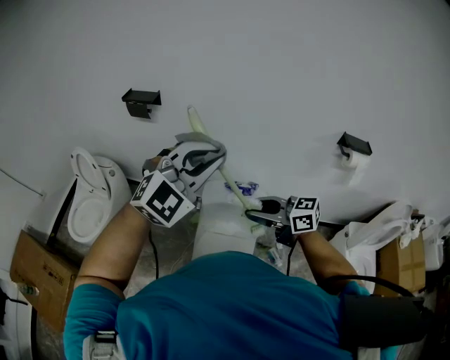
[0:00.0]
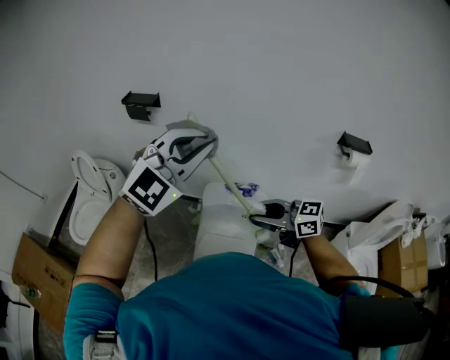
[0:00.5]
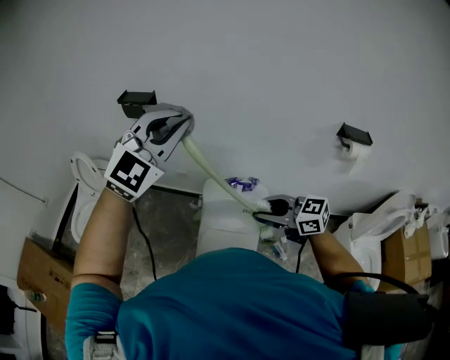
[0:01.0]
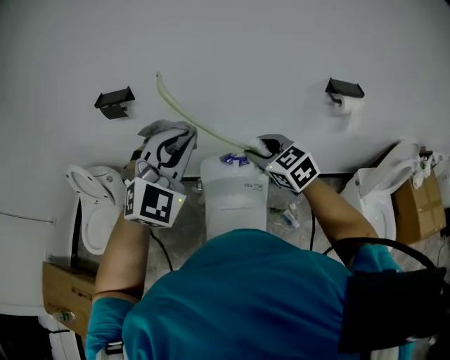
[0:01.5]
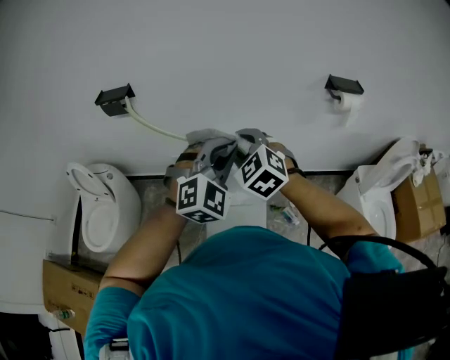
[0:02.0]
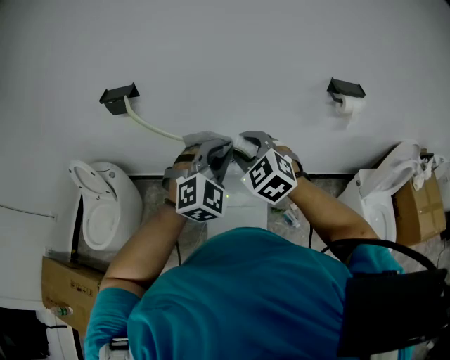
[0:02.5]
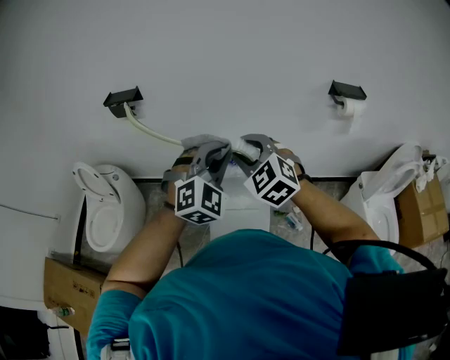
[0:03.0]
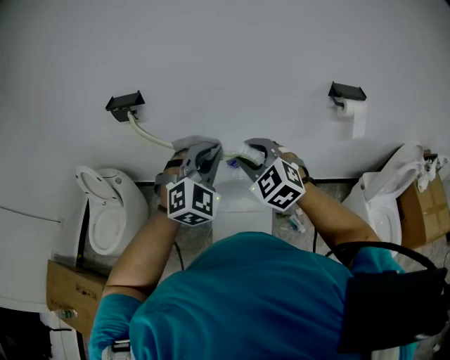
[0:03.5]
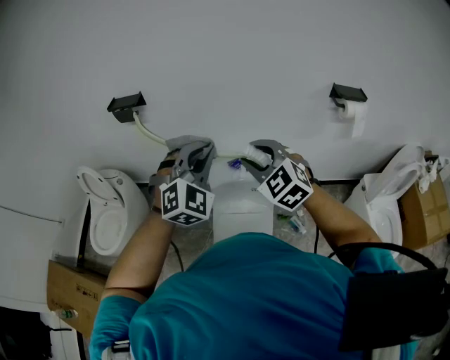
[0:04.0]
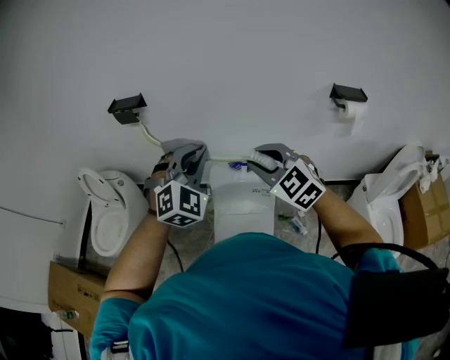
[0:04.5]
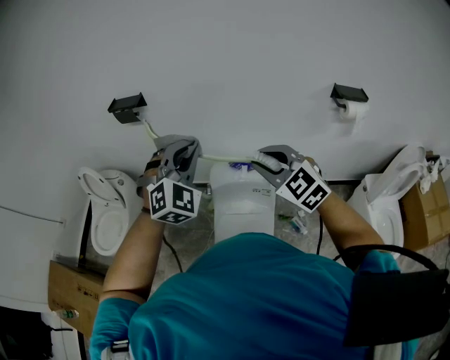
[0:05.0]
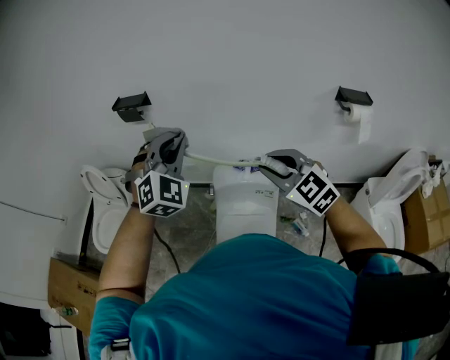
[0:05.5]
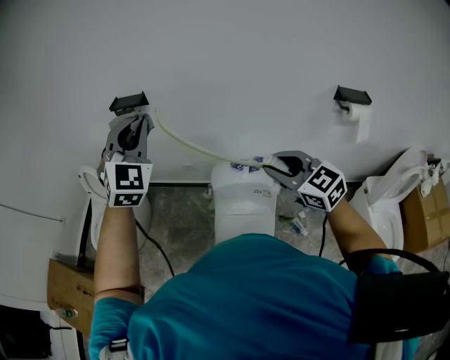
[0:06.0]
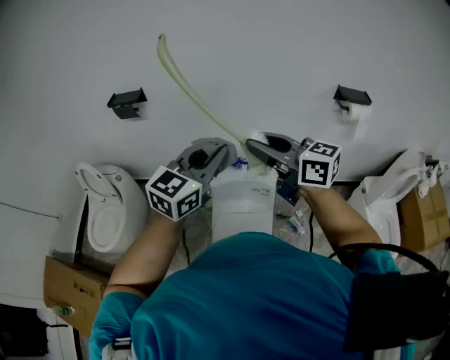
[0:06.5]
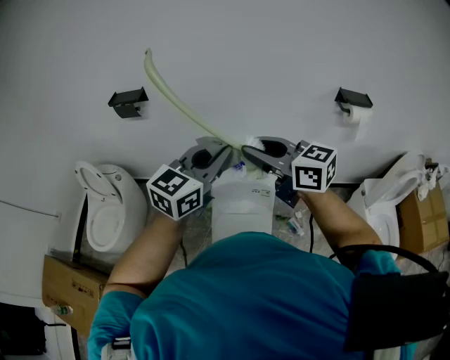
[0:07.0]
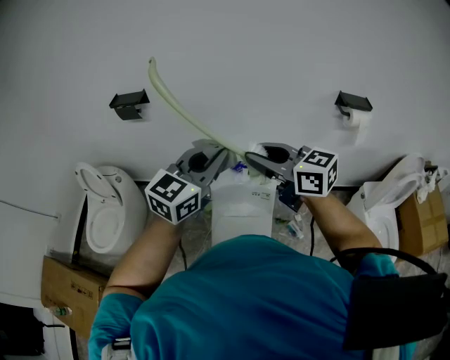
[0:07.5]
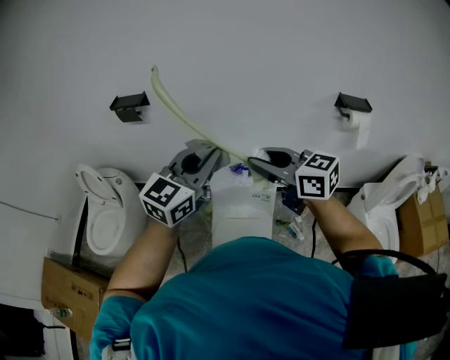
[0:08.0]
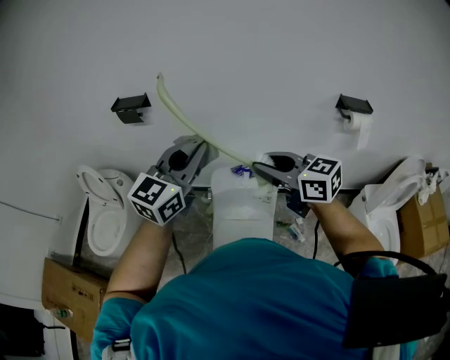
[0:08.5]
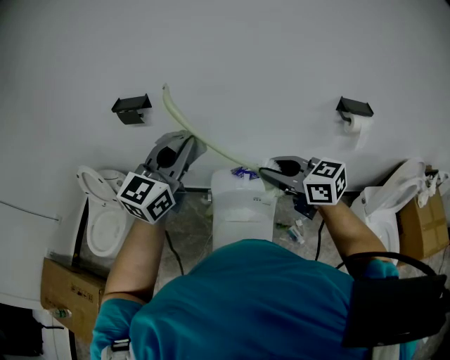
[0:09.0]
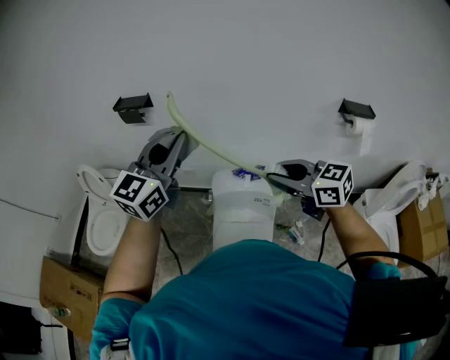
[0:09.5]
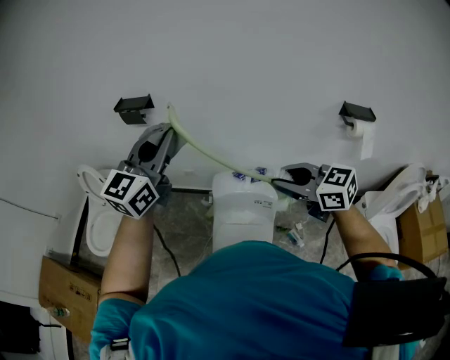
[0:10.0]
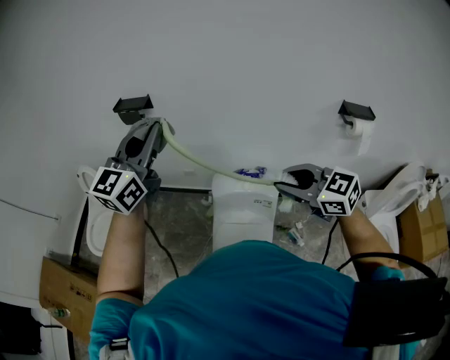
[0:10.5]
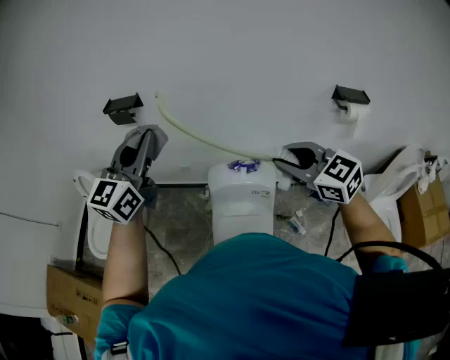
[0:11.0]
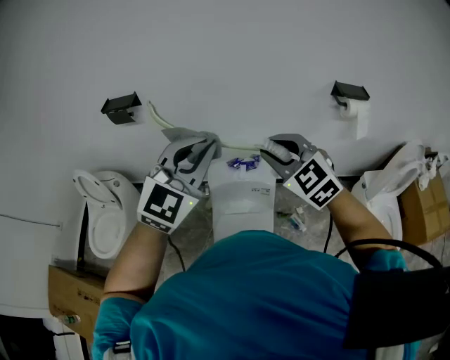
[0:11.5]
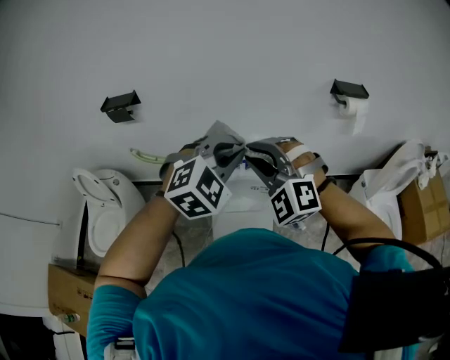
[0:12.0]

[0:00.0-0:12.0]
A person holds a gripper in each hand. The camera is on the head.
0:00.0 to 0:02.0: The right gripper shifts some 10 cm forward, and changes its angle by some 60 degrees. Meanwhile the left gripper moves downward and to the right, about 15 cm.
0:02.0 to 0:04.0: The left gripper travels to the left by approximately 5 cm.
0:04.0 to 0:06.0: The left gripper goes some 20 cm to the left, upward and forward, and changes its angle by roughly 20 degrees. The right gripper changes place by roughly 5 cm, and swivels some 30 degrees.
0:06.0 to 0:08.0: The right gripper ends up some 5 cm from where it was, and changes its angle by approximately 20 degrees. The left gripper shifts roughly 15 cm to the right, downward and backward, and swivels roughly 60 degrees.
0:08.0 to 0:10.0: The left gripper heads to the left and upward, covering approximately 15 cm. Meanwhile the right gripper moves roughly 5 cm.
0:10.0 to 0:12.0: The right gripper ends up roughly 5 cm from where it was, and rolls counterclockwise, seen from behind, by about 60 degrees, while the left gripper travels to the right and downward by about 20 cm, and tips its fingers downward by some 40 degrees.

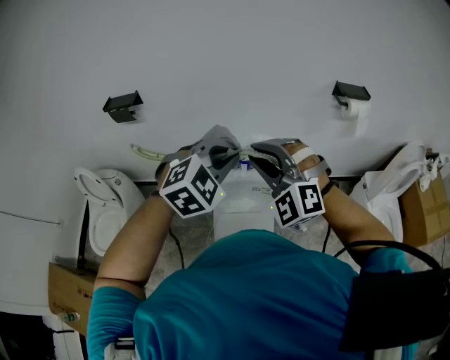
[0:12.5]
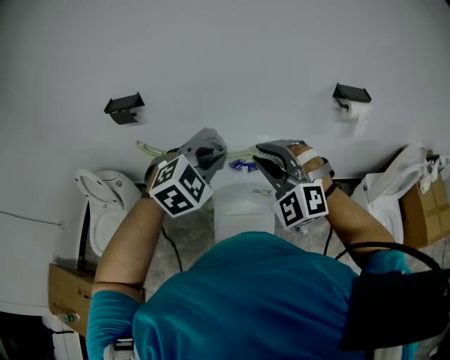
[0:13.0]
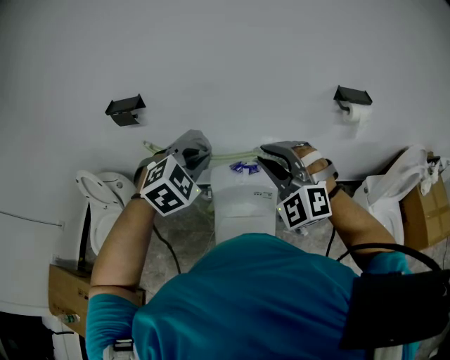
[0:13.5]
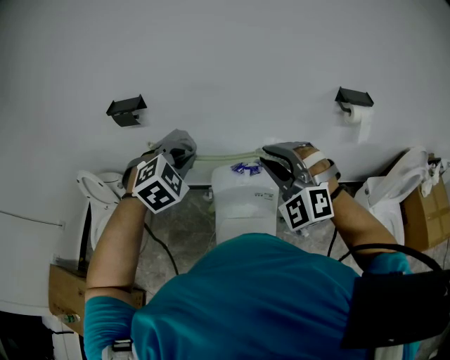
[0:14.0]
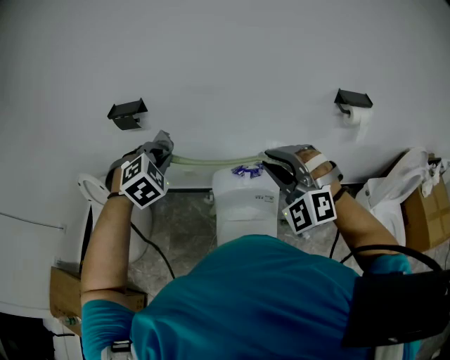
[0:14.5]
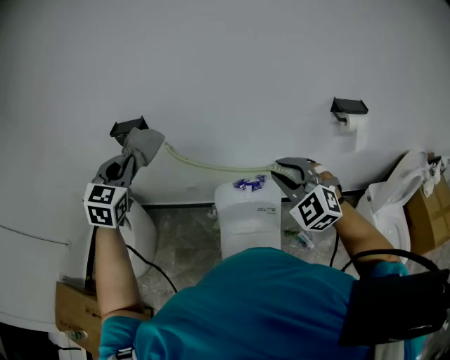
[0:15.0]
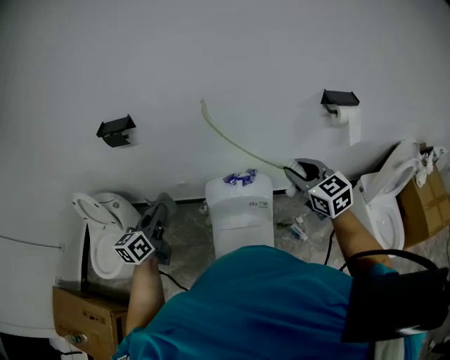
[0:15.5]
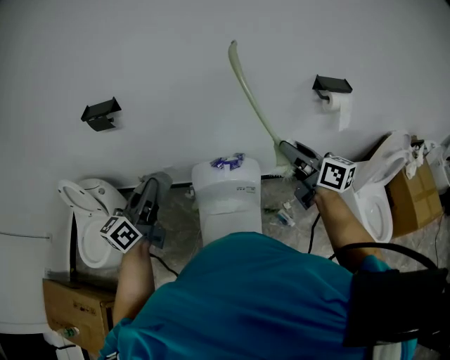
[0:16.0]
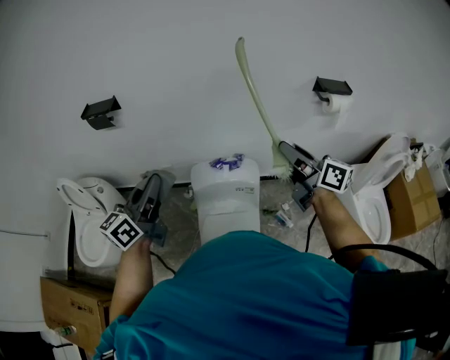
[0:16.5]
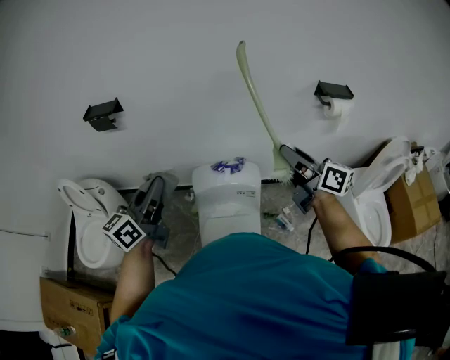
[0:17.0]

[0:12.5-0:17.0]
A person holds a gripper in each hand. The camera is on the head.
0:12.5 to 0:14.5: The left gripper travels to the left by roughly 20 cm, and changes its angle by about 30 degrees.
0:14.5 to 0:17.0: The right gripper moves to the right, some 15 cm, and rotates around the line of its fingers by some 110 degrees, clockwise from behind. The left gripper moves up and down over roughly 20 cm, changing direction 2 times, and points its fingers roughly 50 degrees further upward.

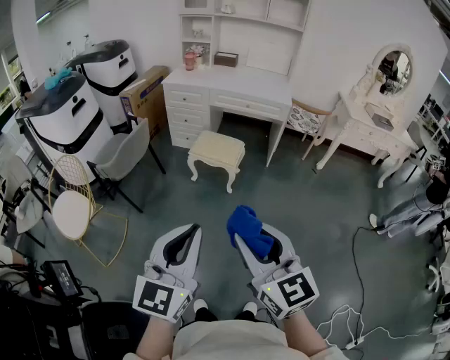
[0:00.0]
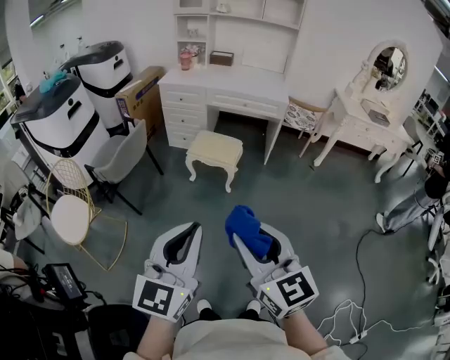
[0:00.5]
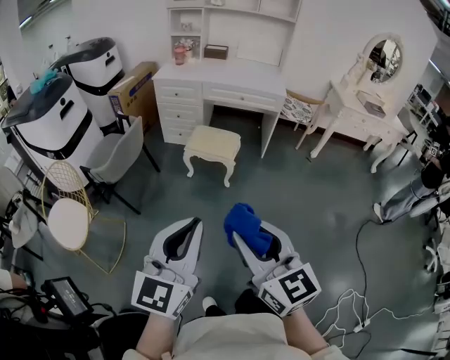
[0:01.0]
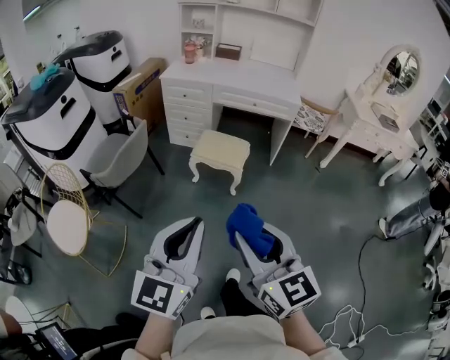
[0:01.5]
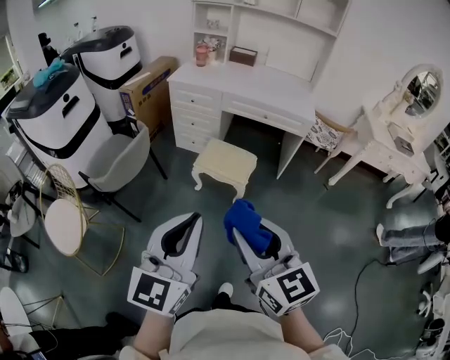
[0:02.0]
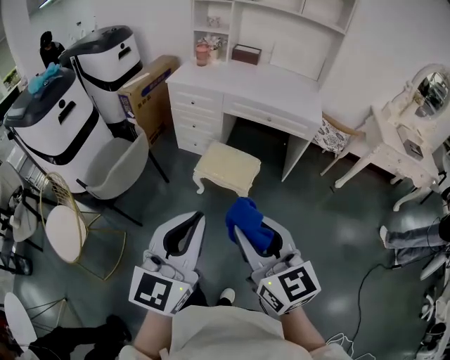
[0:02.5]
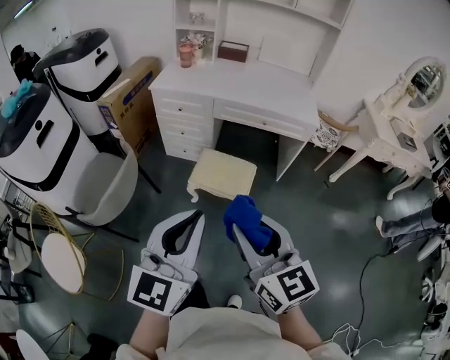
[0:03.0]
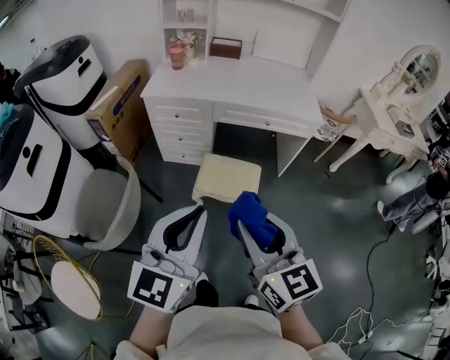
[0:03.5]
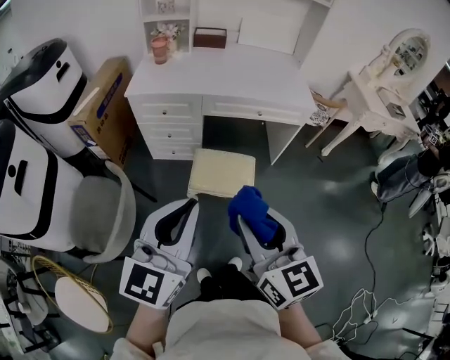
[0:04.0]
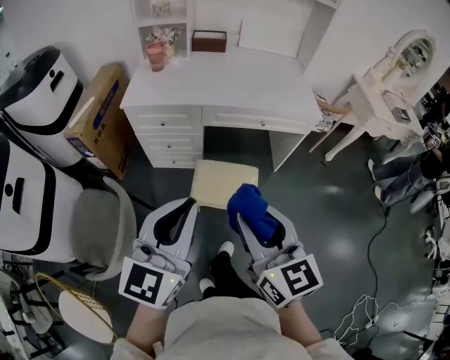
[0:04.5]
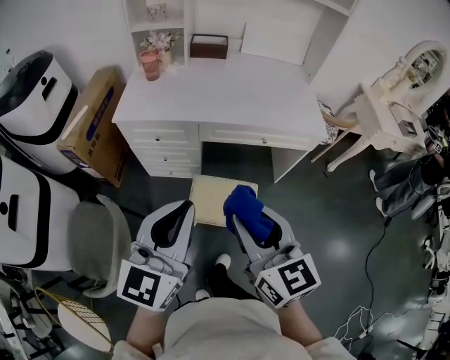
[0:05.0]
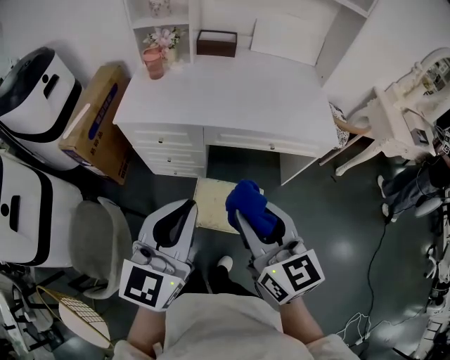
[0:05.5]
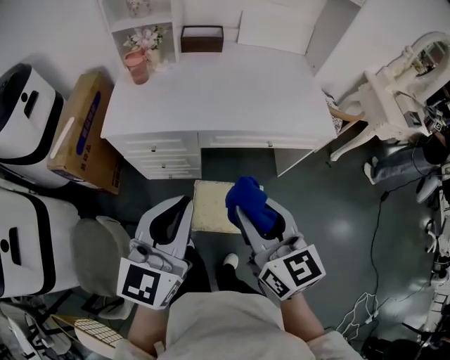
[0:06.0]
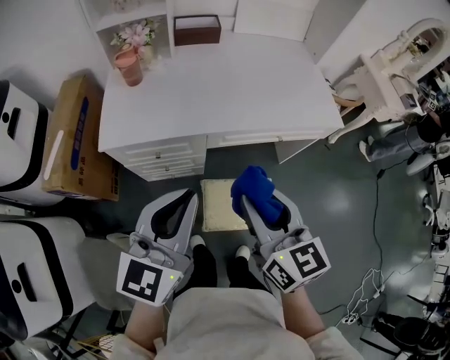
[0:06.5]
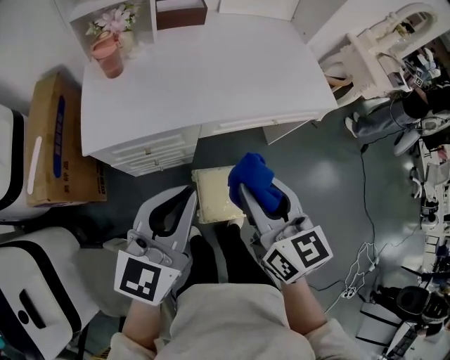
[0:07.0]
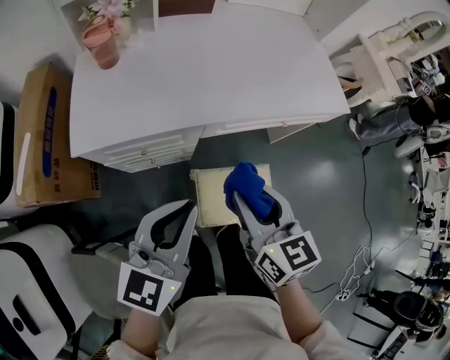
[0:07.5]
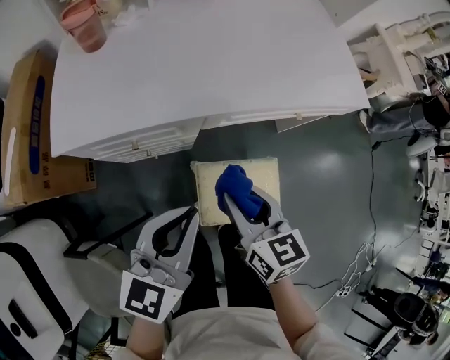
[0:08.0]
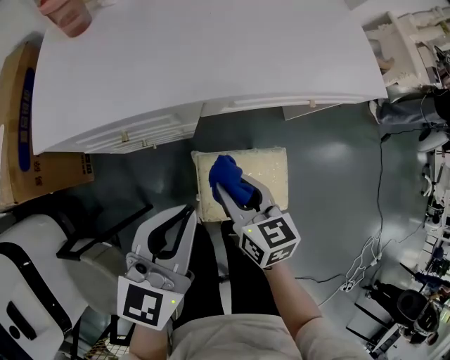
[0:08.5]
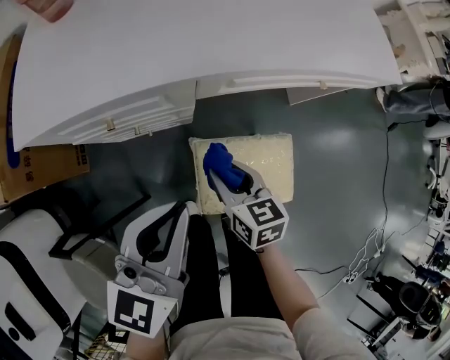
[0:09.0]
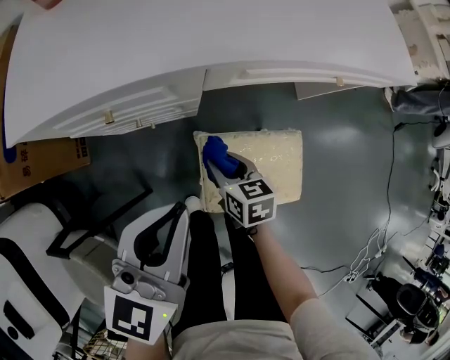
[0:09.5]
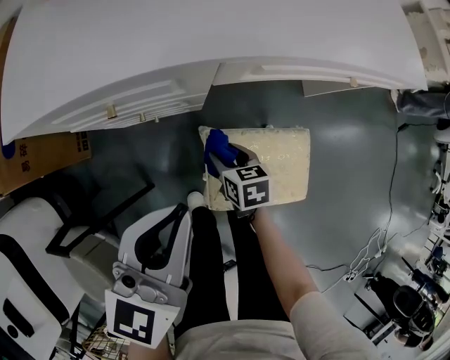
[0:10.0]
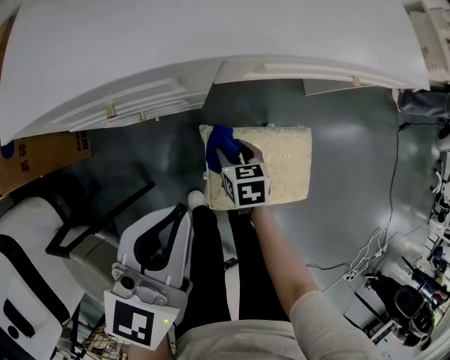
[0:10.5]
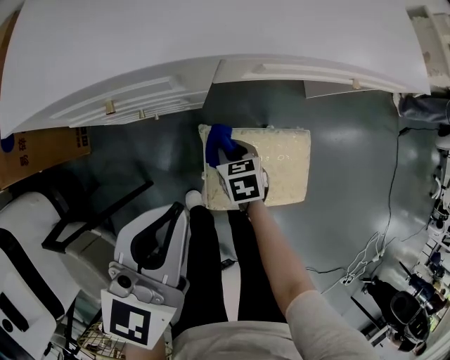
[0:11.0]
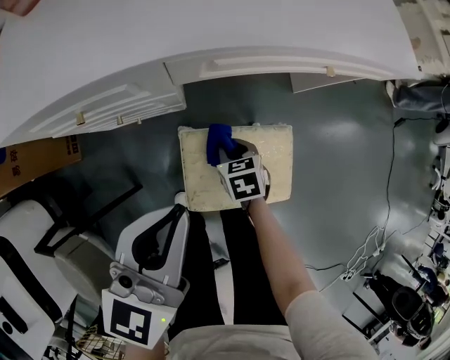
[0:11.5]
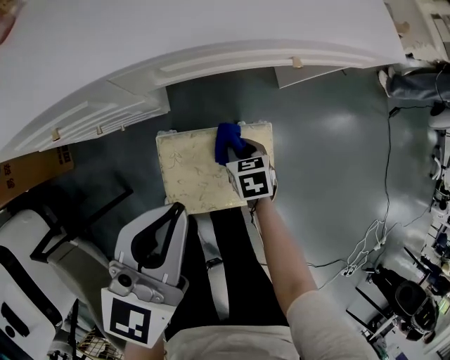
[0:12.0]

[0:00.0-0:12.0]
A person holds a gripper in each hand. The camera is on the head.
0:00.0 to 0:02.0: The two grippers go some 25 cm forward.
0:02.0 to 0:04.0: Both grippers move forward, approximately 30 cm. The right gripper changes its angle by approximately 20 degrees.
0:04.0 to 0:06.0: Both grippers travel together forward, some 30 cm.
0:06.0 to 0:08.0: Both grippers move downward, forward and to the left, some 25 cm. The right gripper rotates approximately 20 degrees, while the left gripper rotates roughly 20 degrees.
0:08.0 to 0:10.0: The right gripper shifts approximately 30 cm downward, and changes its angle by some 30 degrees, while the left gripper moves downward, roughly 10 cm.
0:10.0 to 0:12.0: Both grippers travel together to the right, roughly 15 cm. The right gripper closes up.
